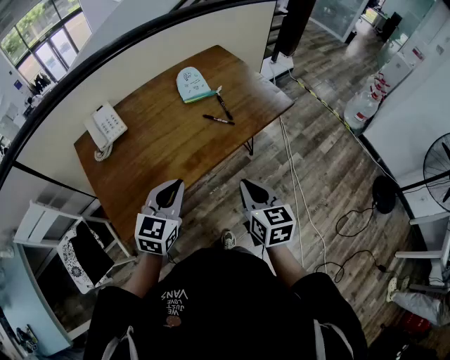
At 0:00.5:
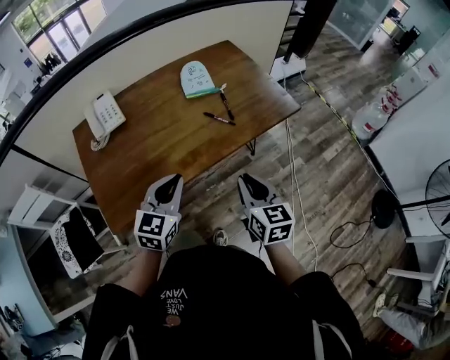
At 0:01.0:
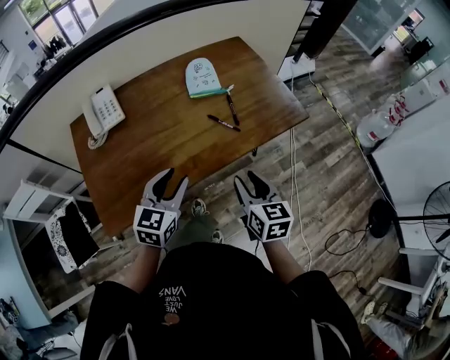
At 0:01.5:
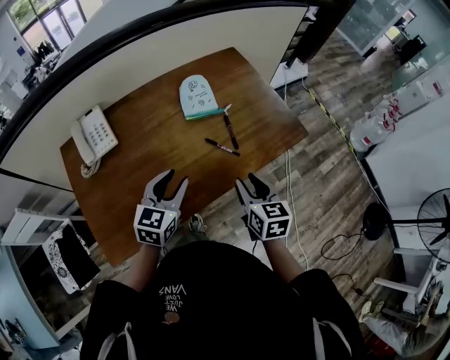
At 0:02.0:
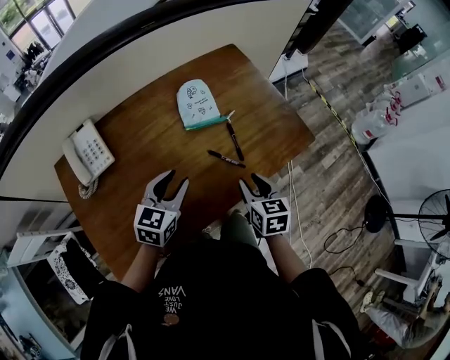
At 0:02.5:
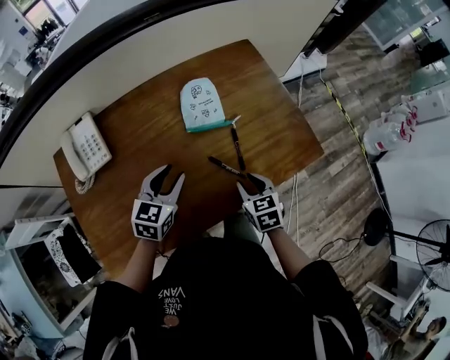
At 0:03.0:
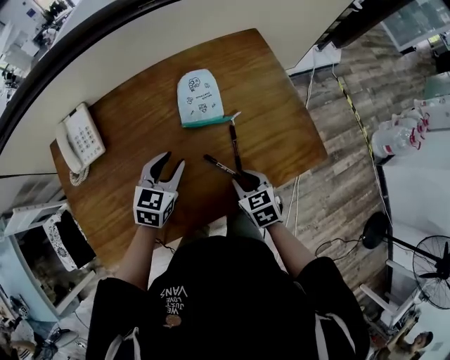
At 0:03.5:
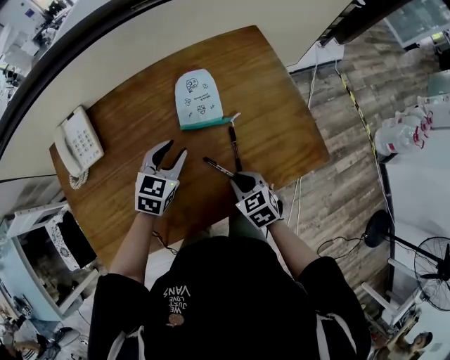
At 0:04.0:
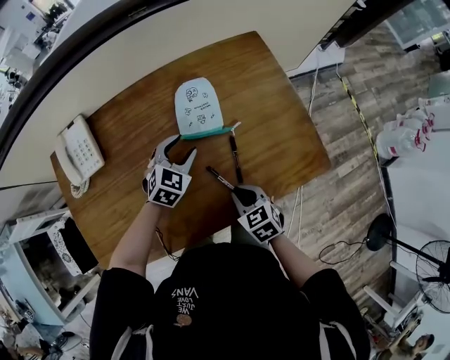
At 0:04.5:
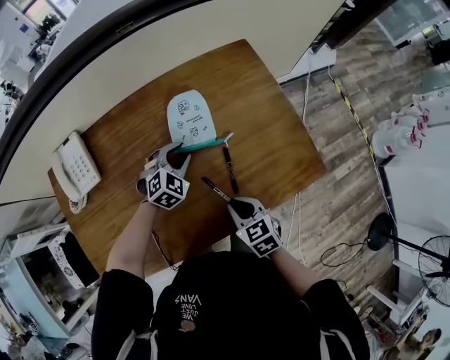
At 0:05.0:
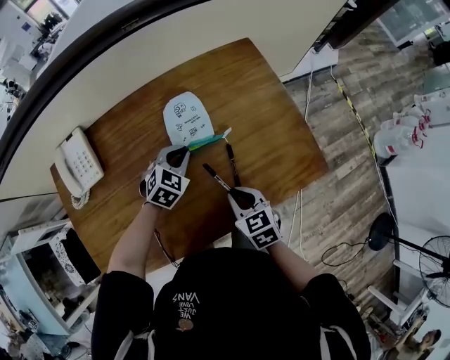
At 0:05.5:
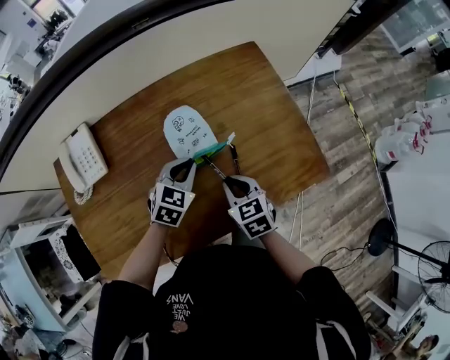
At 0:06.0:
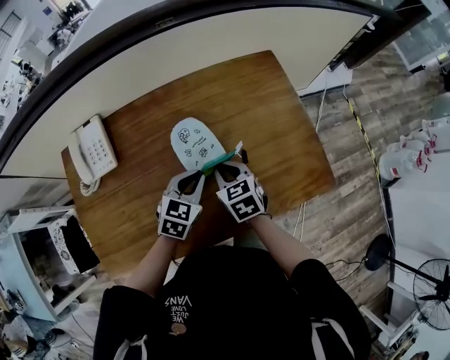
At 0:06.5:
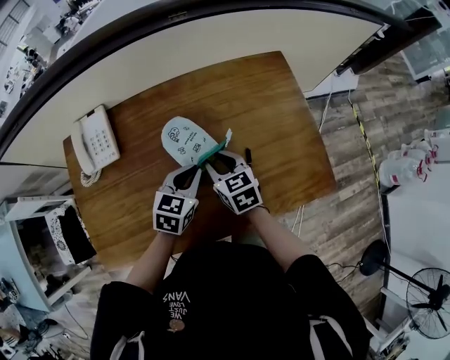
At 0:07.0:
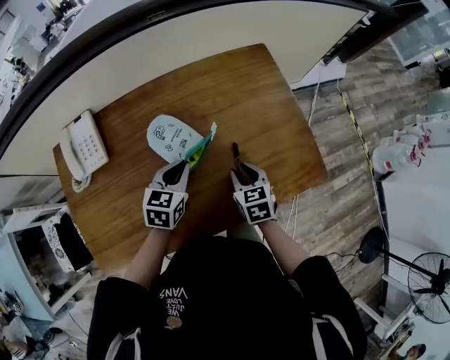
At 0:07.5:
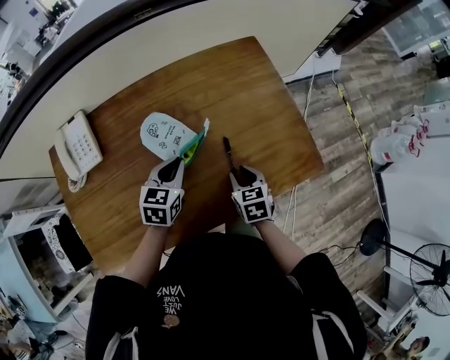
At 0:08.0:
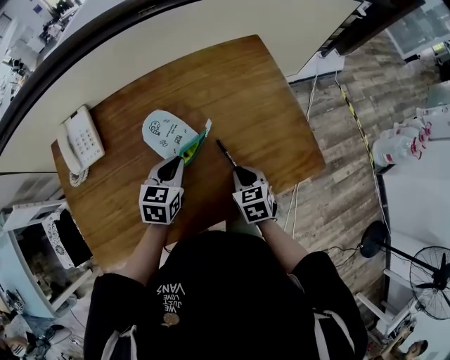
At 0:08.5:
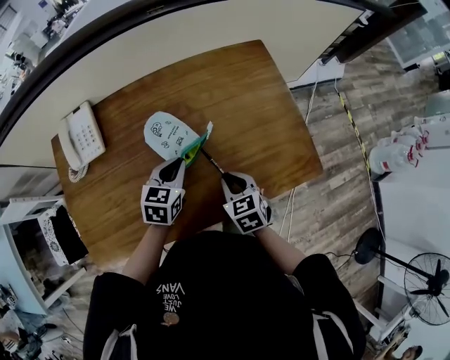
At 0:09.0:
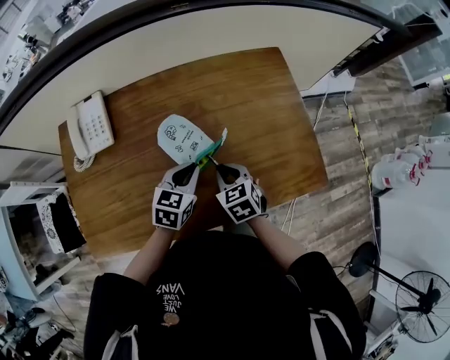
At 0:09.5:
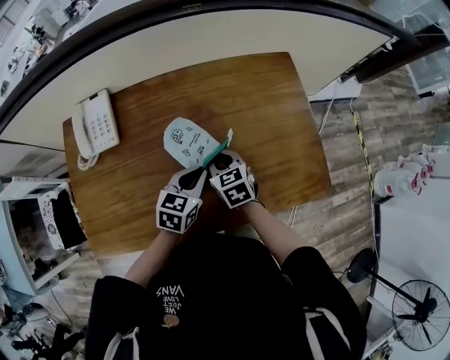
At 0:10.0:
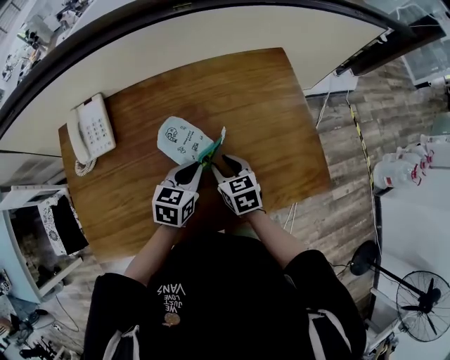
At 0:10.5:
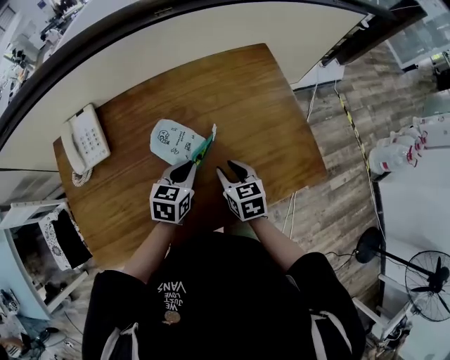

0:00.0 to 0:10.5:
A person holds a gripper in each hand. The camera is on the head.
0:00.0 to 0:02.0: Both grippers move forward, about 25 cm. The left gripper opens up. The right gripper opens its fingers.
0:02.0 to 0:04.0: The right gripper shifts some 10 cm downward, and turns by roughly 40 degrees, while the left gripper goes roughly 20 cm forward and downward, and changes its angle by some 30 degrees.
0:04.0 to 0:06.5: The right gripper heads forward, to the left and upward, covering approximately 20 cm, while the left gripper travels upward and backward by some 5 cm, swivels about 30 degrees, and closes.
0:06.5 to 0:08.5: The right gripper moves to the right and backward, approximately 15 cm.
0:08.5 to 0:10.5: The right gripper reaches about 10 cm to the left, then returns.

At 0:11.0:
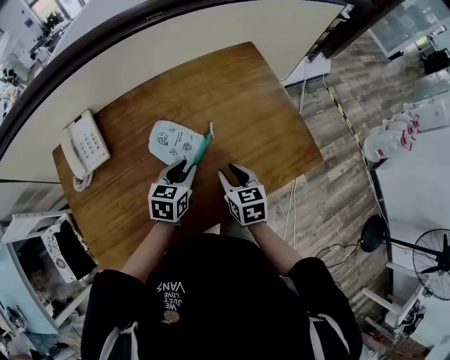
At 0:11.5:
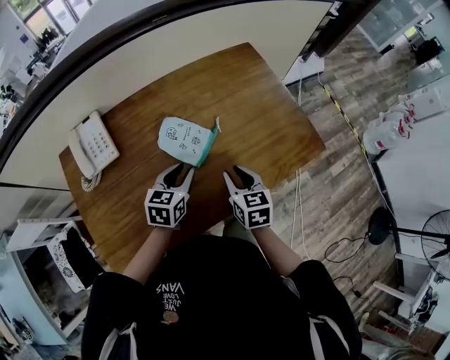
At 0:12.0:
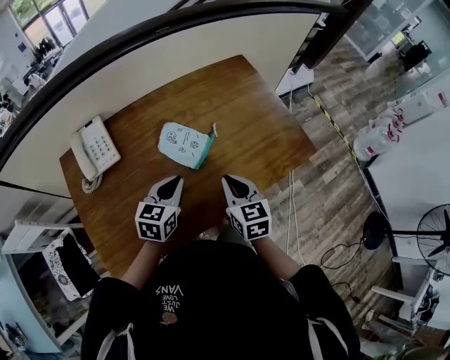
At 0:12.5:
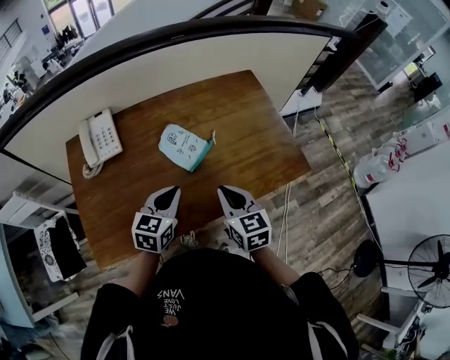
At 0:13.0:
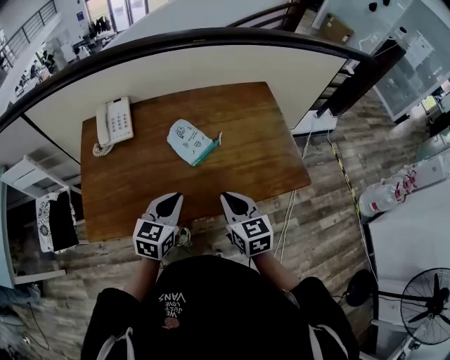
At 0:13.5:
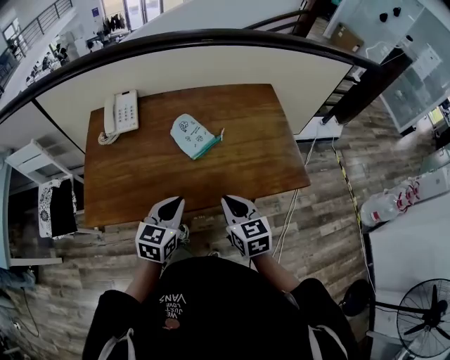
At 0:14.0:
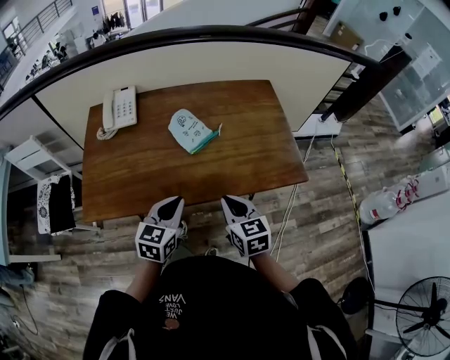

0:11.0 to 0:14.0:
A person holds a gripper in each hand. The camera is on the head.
0:11.0 to 0:12.5: The left gripper shifts approximately 15 cm backward and upward, and closes up. Meanwhile the right gripper shifts approximately 15 cm upward and backward, and closes up.
0:12.5 to 0:14.0: The two grippers go approximately 10 cm backward.

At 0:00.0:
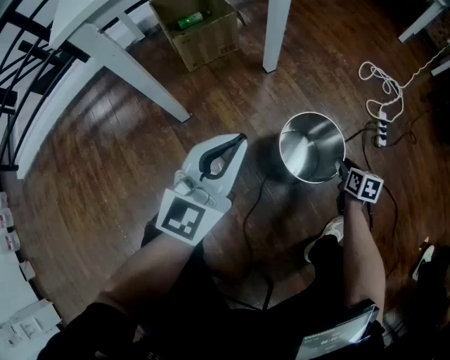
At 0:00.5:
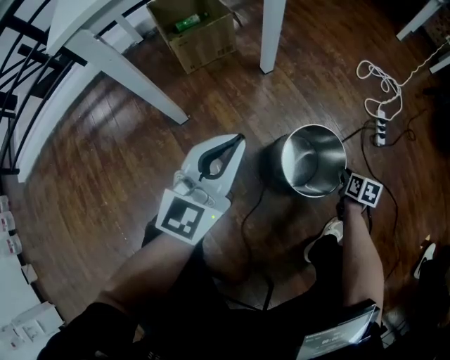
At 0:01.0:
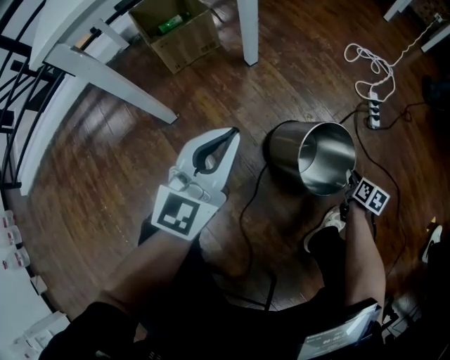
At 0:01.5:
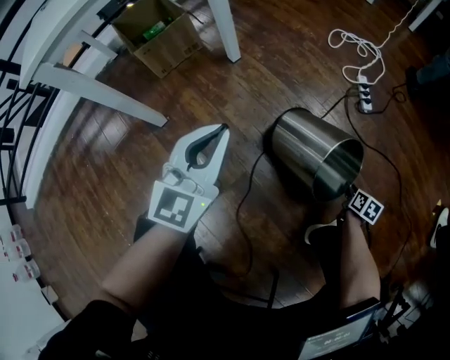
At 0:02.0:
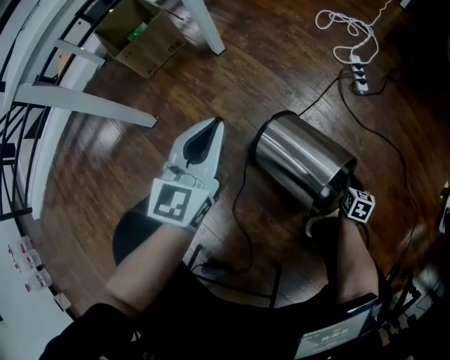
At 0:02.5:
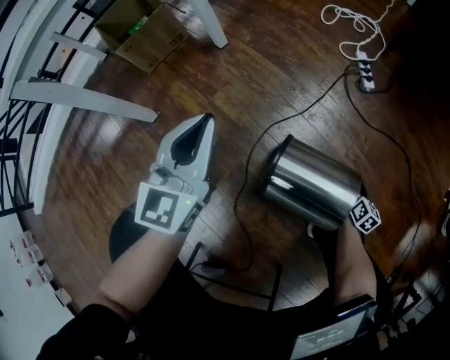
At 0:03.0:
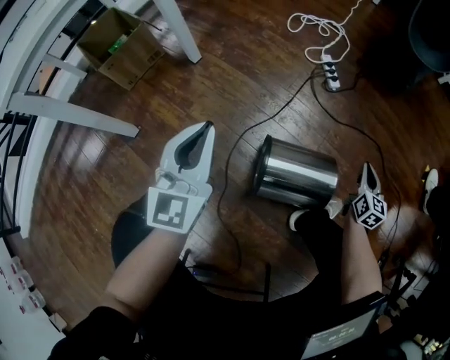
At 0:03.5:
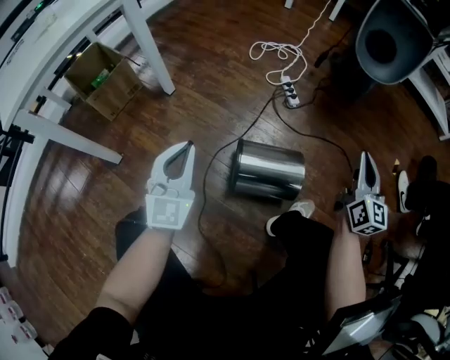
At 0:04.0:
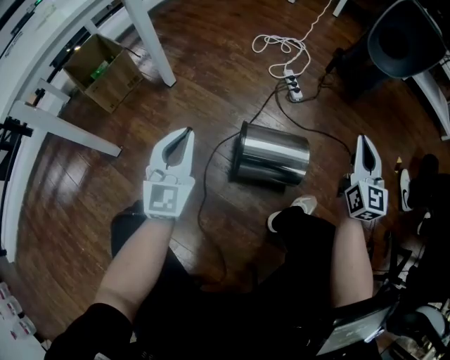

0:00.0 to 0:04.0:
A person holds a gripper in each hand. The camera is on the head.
0:00.0 to 0:02.0: The right gripper moves to the right, backward and downward, approximately 30 cm, and closes up; the left gripper heads to the right and downward, covering approximately 10 cm.
0:02.0 to 0:04.0: The right gripper shifts approximately 40 cm upward, and tips its fingers upward by about 50 degrees. Meanwhile the left gripper ends up roughly 5 cm from where it was.

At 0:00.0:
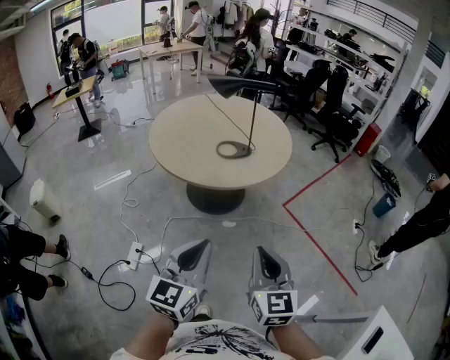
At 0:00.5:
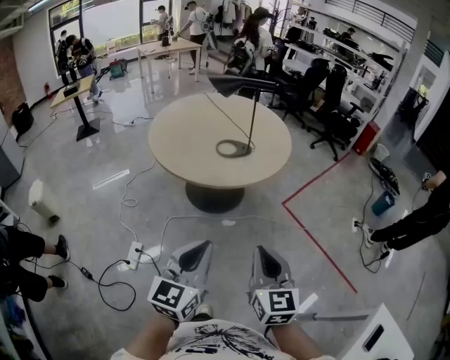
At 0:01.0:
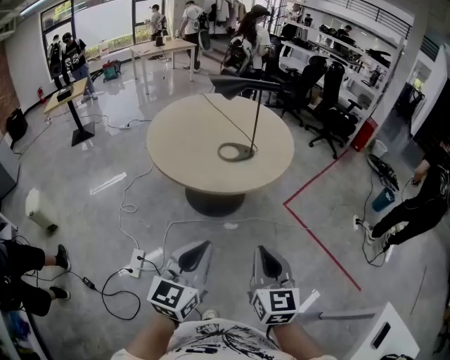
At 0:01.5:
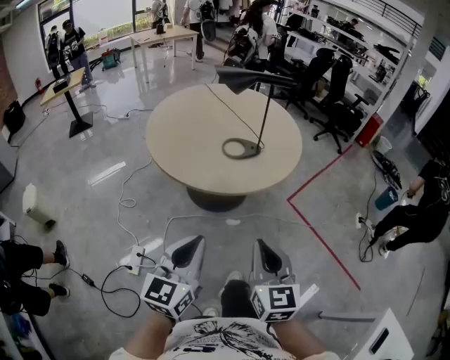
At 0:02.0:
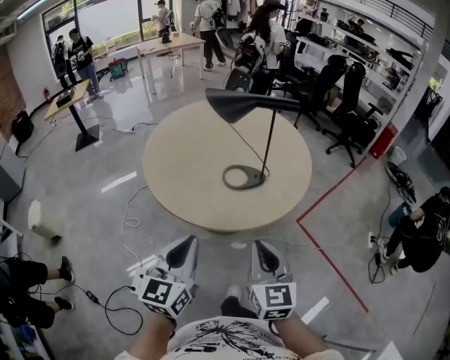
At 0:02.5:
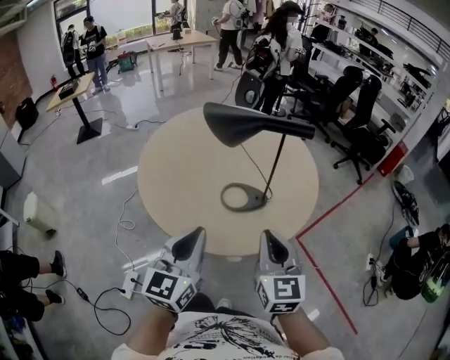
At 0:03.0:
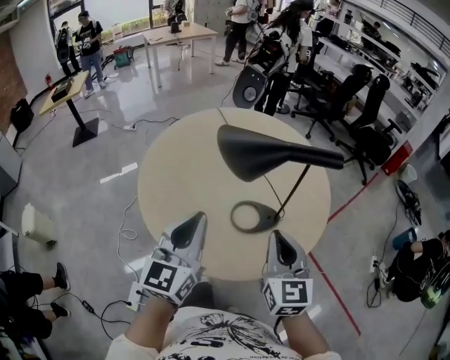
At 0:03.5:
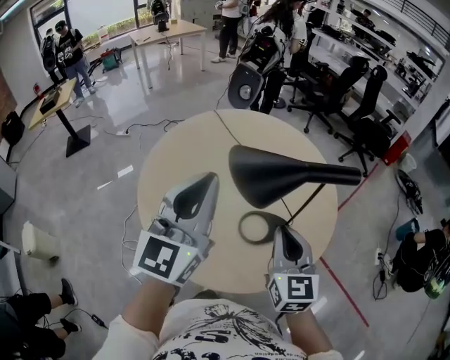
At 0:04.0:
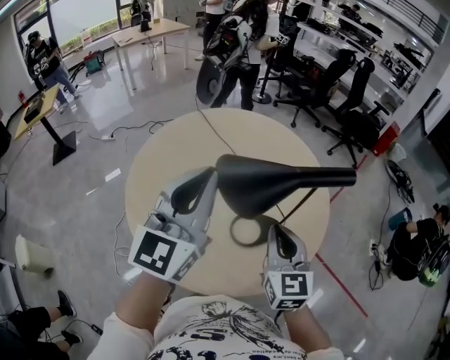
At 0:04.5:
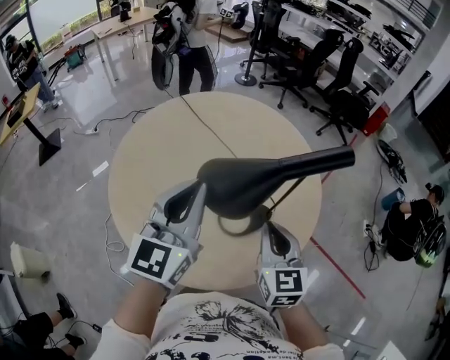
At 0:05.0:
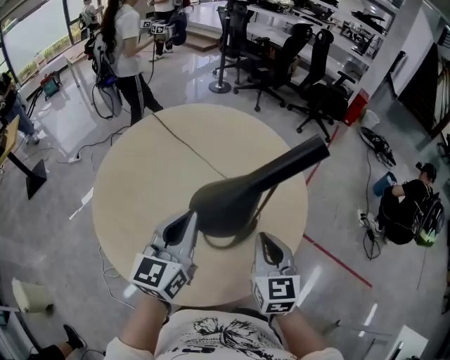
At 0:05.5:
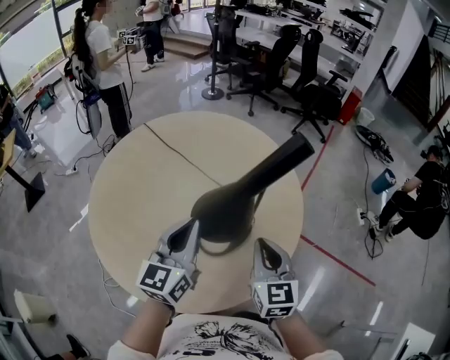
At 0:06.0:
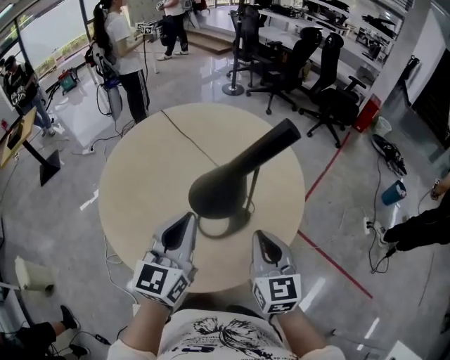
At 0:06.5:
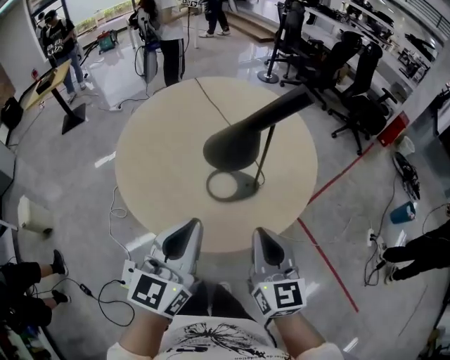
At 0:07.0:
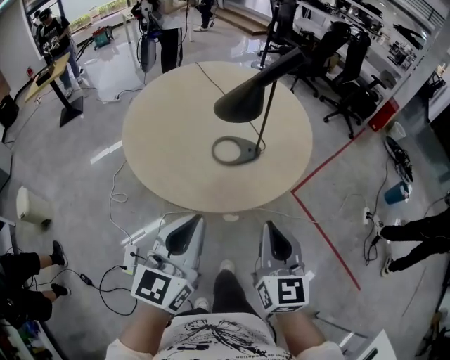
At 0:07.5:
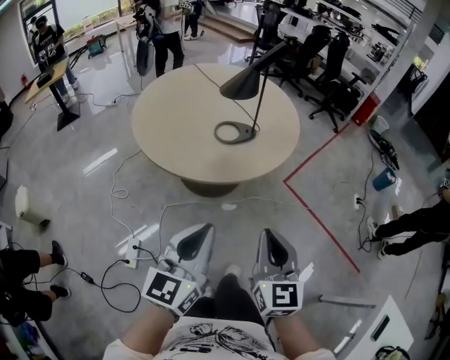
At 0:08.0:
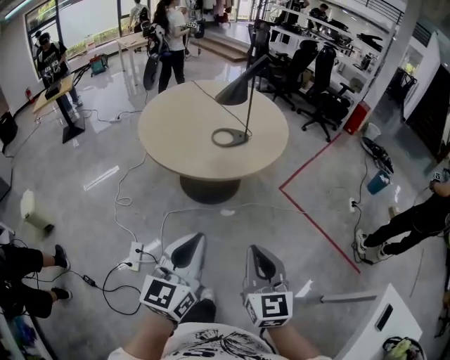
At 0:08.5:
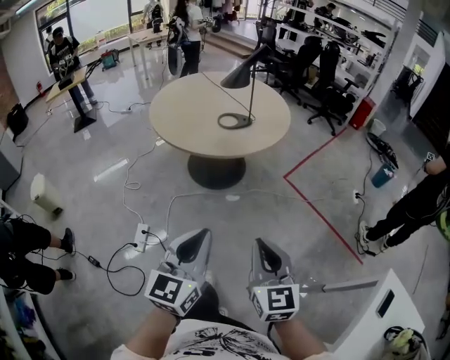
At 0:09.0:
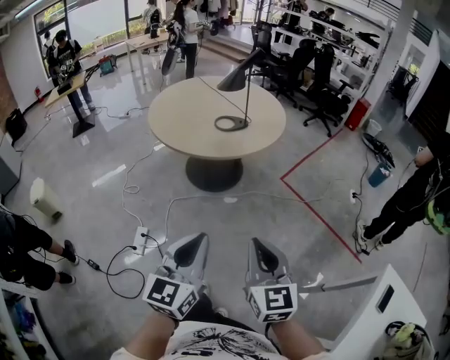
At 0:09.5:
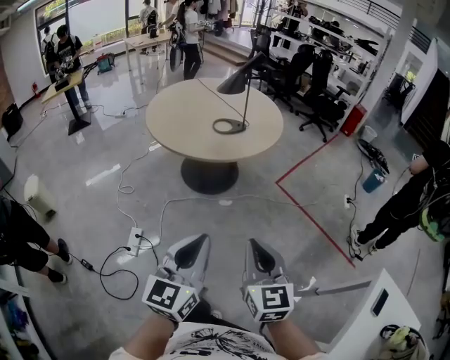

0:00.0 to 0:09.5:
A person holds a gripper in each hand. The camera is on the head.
0:00.0 to 0:02.0: The left gripper heads forward and to the left, covering about 20 cm, while the right gripper goes roughly 20 cm forward.
0:02.0 to 0:04.0: The right gripper shifts approximately 25 cm forward. The left gripper shifts some 35 cm forward and upward, and changes its angle by about 20 degrees.
0:04.0 to 0:05.5: The right gripper moves downward and to the right, roughly 10 cm. Meanwhile the left gripper heads downward, covering approximately 15 cm, and turns by some 20 degrees.
0:05.5 to 0:07.5: Both grippers travel together backward, some 40 cm.
0:07.5 to 0:09.5: The two grippers go about 20 cm backward.
